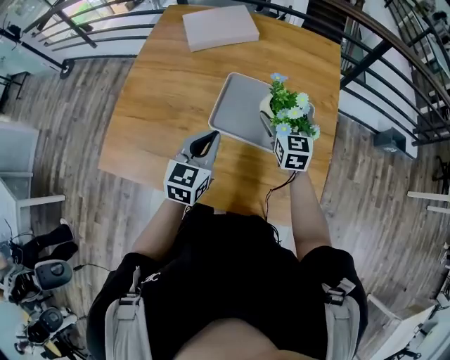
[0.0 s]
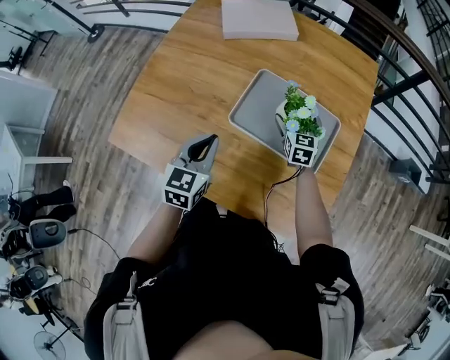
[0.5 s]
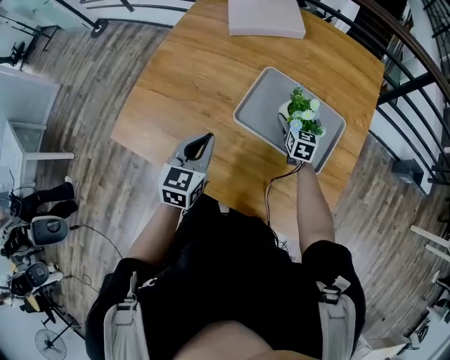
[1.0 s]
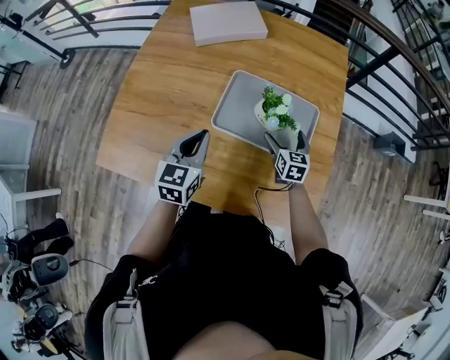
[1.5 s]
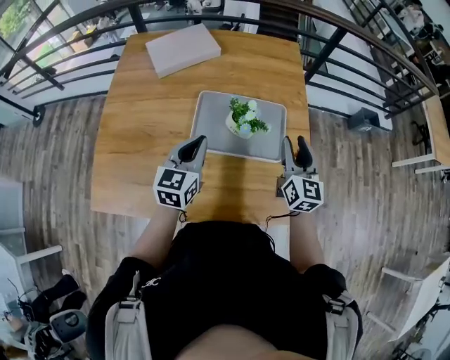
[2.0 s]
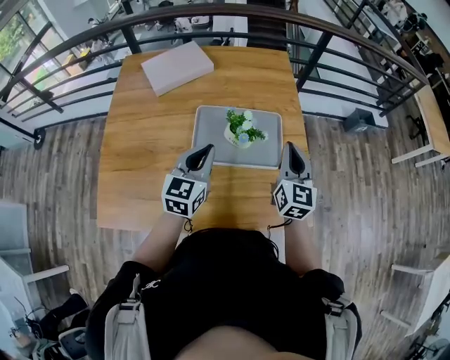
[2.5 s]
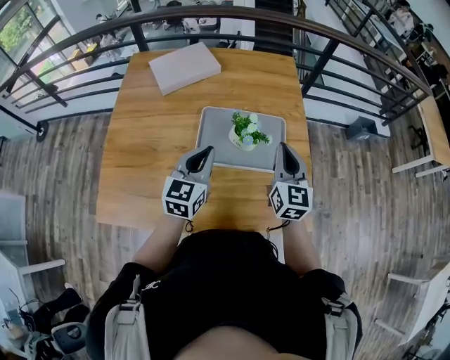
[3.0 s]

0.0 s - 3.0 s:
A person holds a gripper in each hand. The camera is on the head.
0.0 s - 1.5 s: The left gripper travels to the left by approximately 5 cm; the right gripper is displaced downward by roughly 15 cm.
1.5 s - 3.0 s: The right gripper shifts approximately 25 cm upward, changes its angle by about 30 degrees, and closes up. Meanwhile the left gripper is displaced upward and to the right by approximately 10 cm.

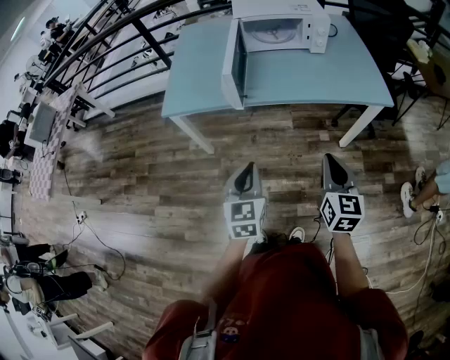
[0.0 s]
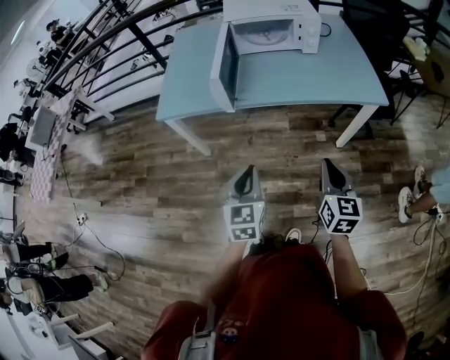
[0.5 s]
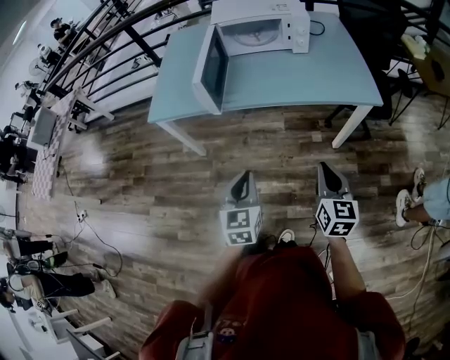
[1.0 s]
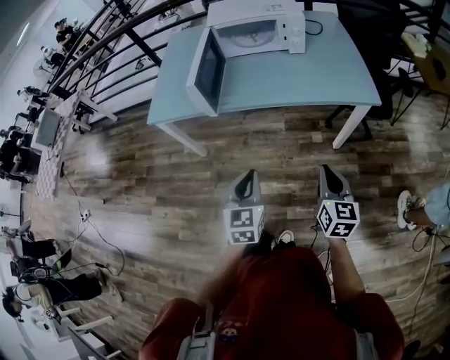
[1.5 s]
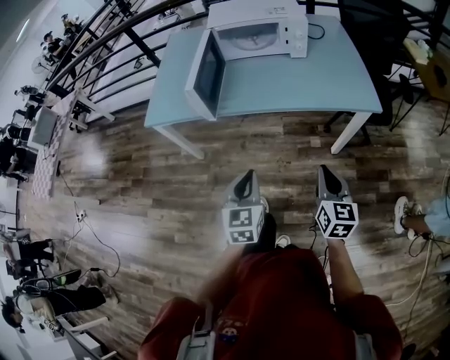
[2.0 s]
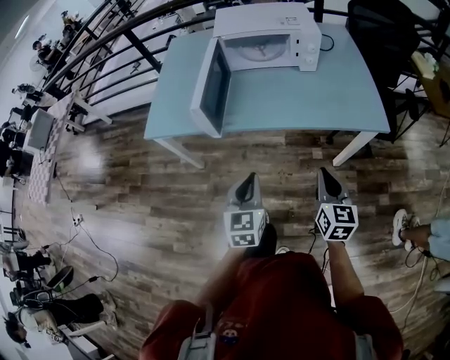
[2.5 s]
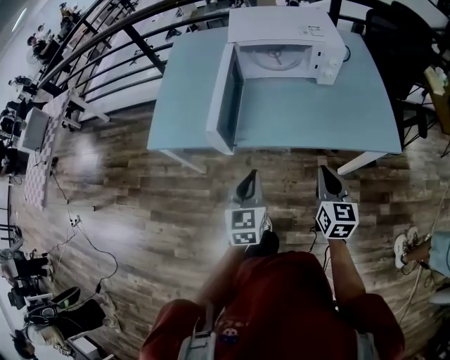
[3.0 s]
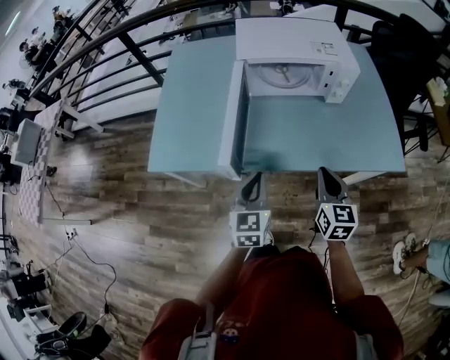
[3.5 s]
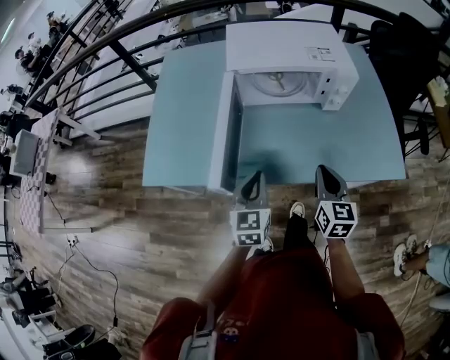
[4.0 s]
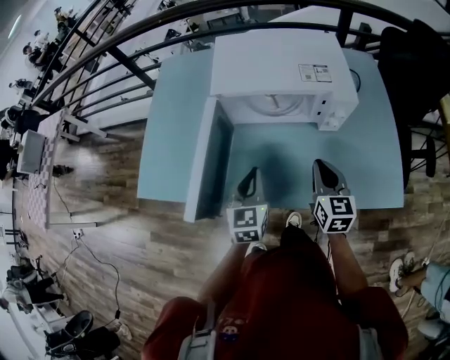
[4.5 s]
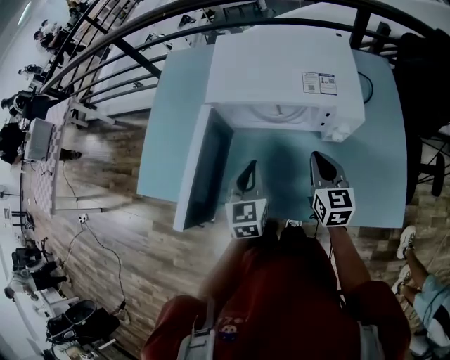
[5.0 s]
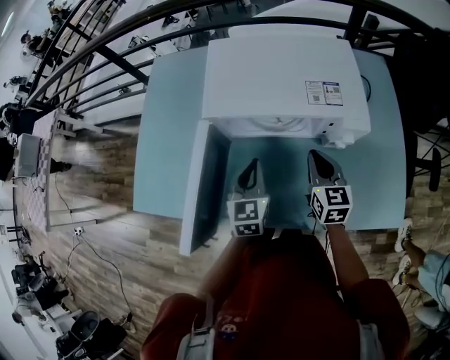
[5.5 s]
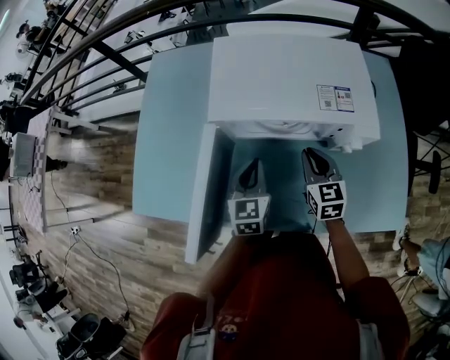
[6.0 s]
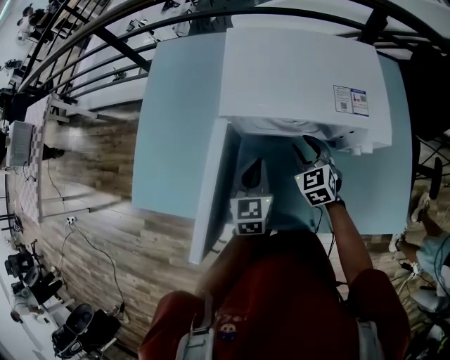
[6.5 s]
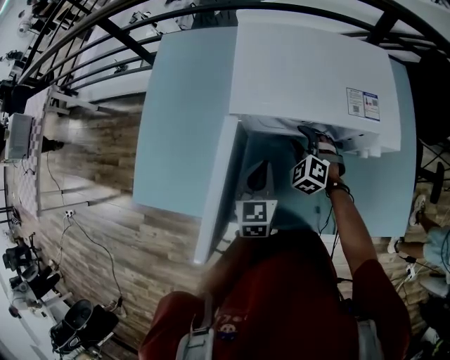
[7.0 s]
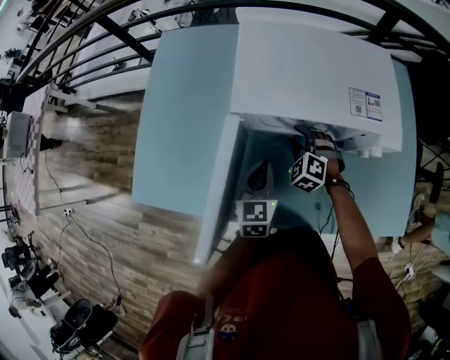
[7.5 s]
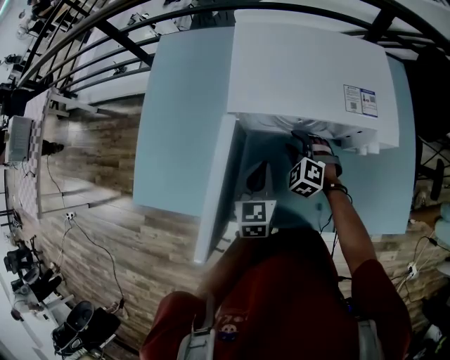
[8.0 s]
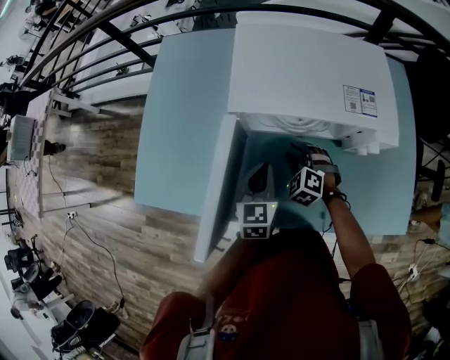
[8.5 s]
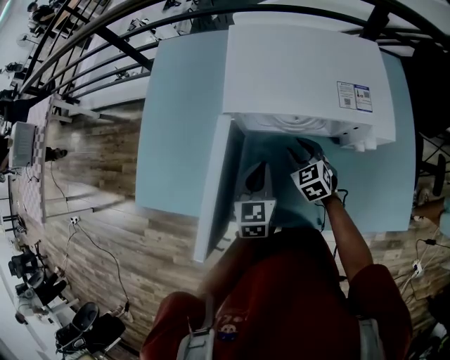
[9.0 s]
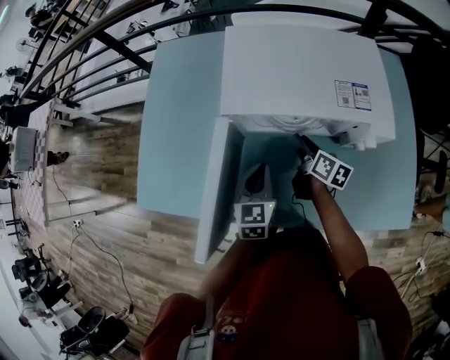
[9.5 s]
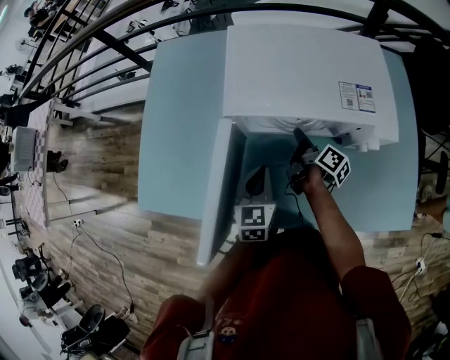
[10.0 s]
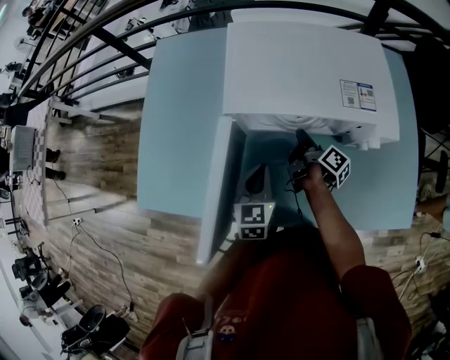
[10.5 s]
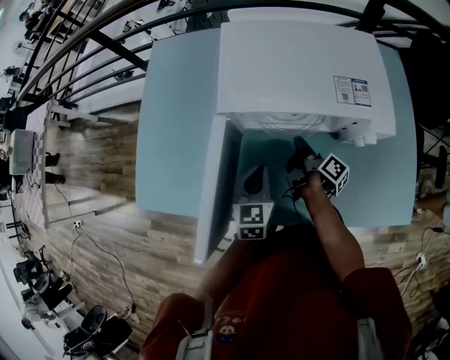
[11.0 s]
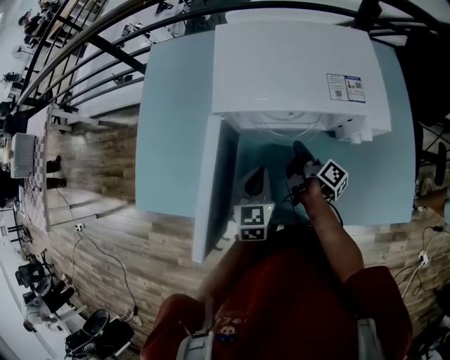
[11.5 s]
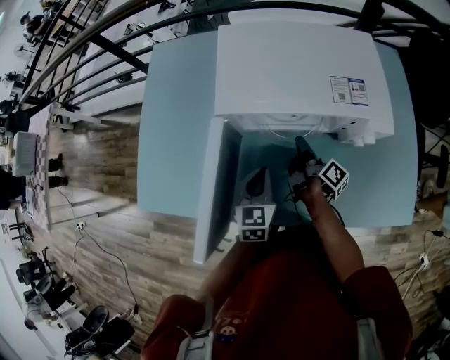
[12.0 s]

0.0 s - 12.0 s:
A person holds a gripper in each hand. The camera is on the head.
0.0 s - 2.0 s: The two grippers go approximately 15 cm to the right.
2.0 s - 4.0 s: Both grippers travel together forward, some 35 cm.
4.0 s - 6.0 s: The grippers both shift forward by roughly 25 cm.
6.0 s - 8.0 s: The right gripper moves downward and to the left, about 15 cm, rotates around the line of its fingers by roughly 50 degrees, counterclockwise from behind, and opens.
8.0 s - 10.0 s: The right gripper is displaced to the right by approximately 5 cm, and rolls clockwise, seen from behind, by approximately 130 degrees.
10.0 s - 12.0 s: The right gripper closes, then opens again.

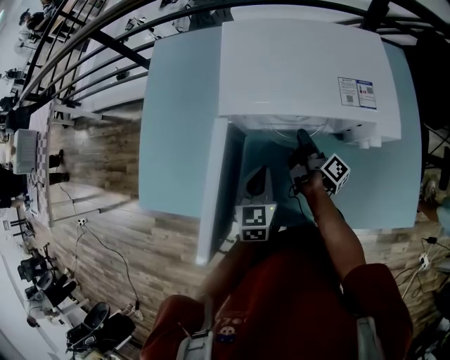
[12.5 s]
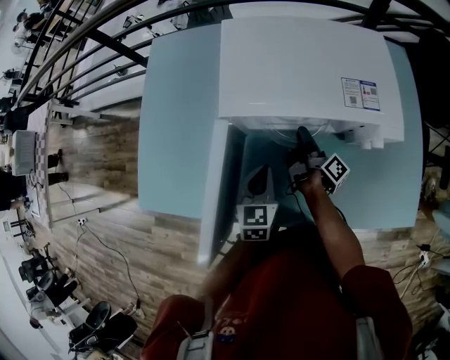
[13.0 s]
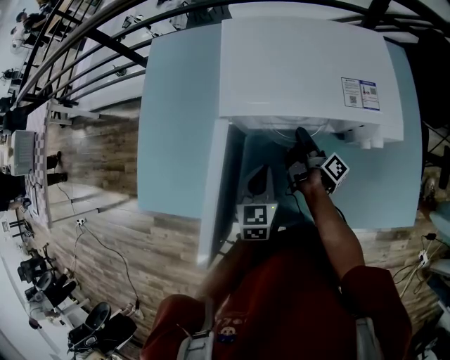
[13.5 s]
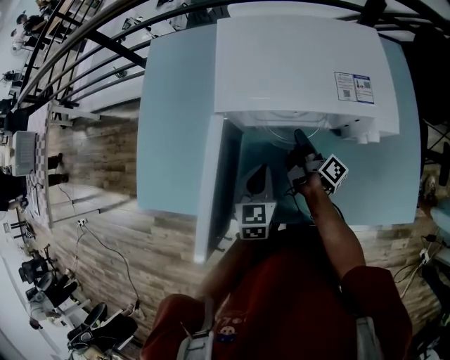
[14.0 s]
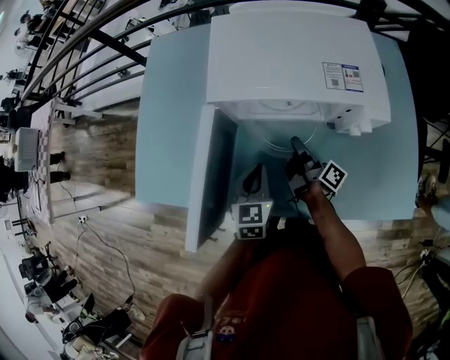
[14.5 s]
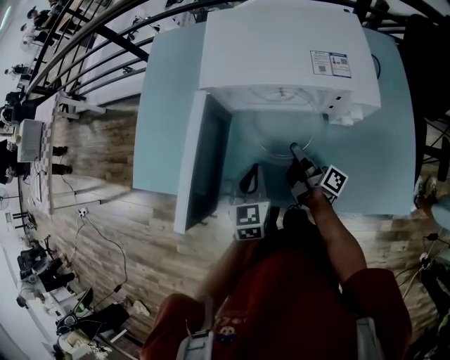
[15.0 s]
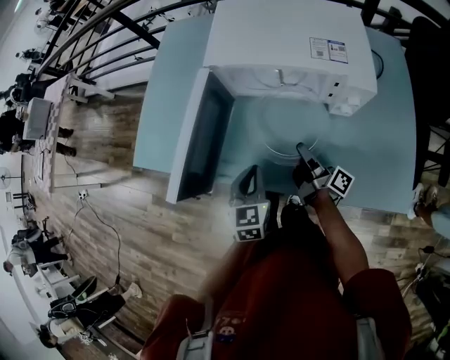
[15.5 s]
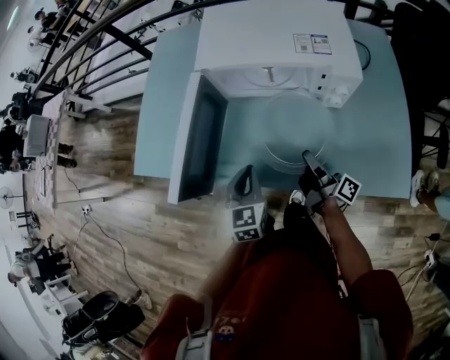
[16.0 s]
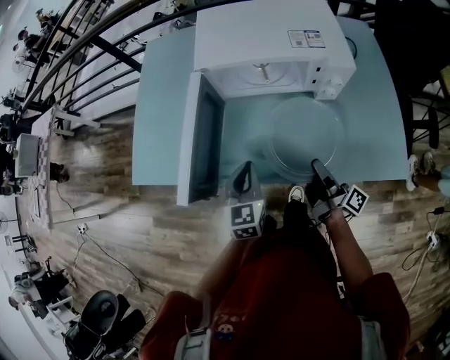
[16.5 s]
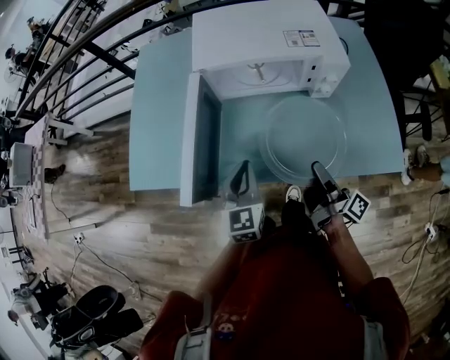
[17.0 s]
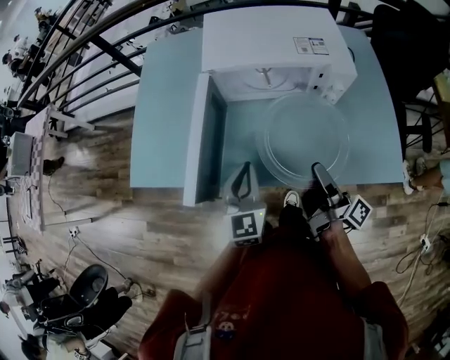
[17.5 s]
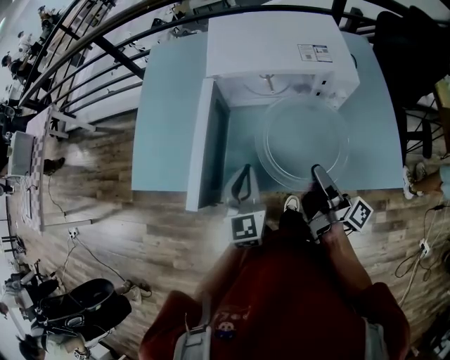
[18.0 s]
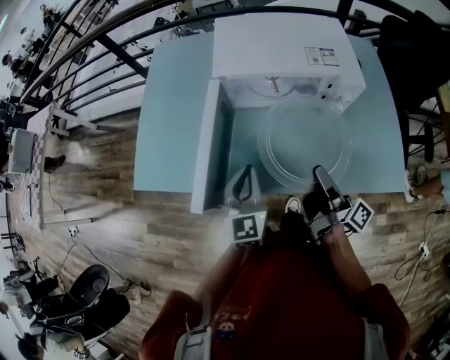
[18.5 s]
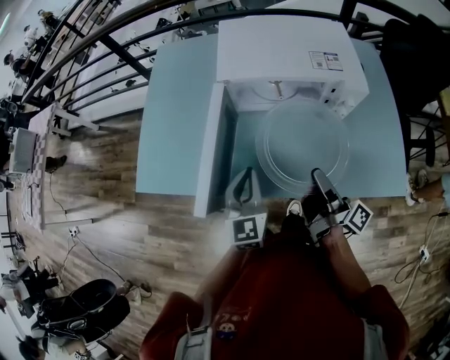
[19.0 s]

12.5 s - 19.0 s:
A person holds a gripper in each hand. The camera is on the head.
12.5 s - 14.5 s: The right gripper heads backward, covering about 5 cm, and closes up.
14.5 s - 17.0 s: The right gripper shifts roughly 25 cm backward. Meanwhile the left gripper moves backward and upward, roughly 15 cm.
17.0 s - 19.0 s: The right gripper goes about 5 cm upward. The left gripper changes place by approximately 5 cm.

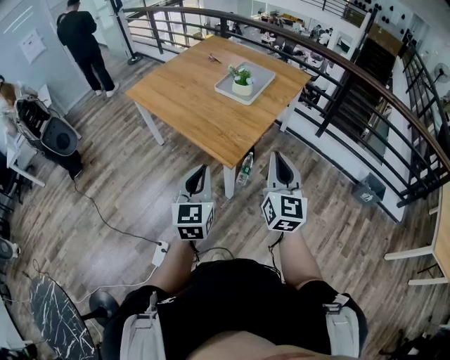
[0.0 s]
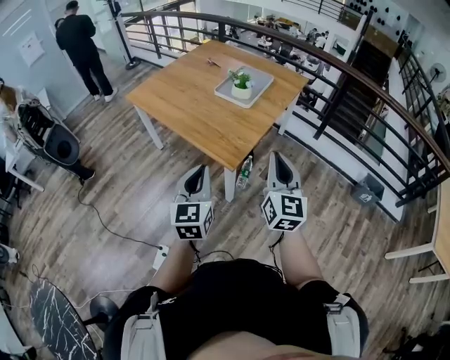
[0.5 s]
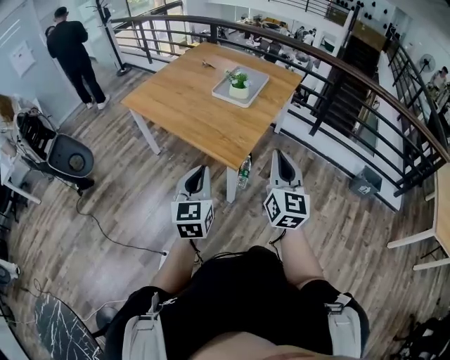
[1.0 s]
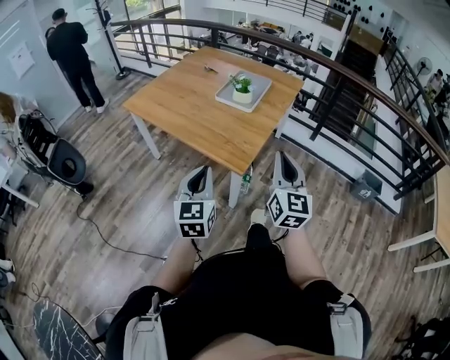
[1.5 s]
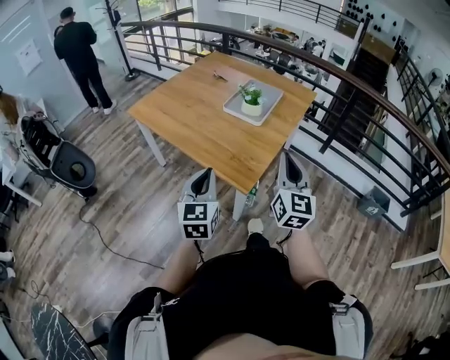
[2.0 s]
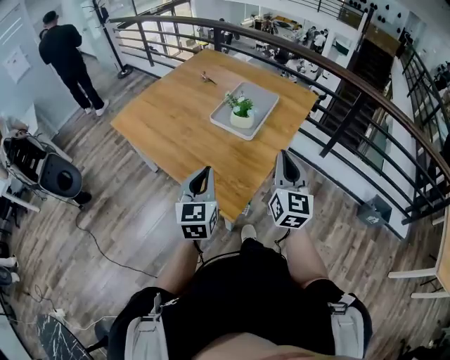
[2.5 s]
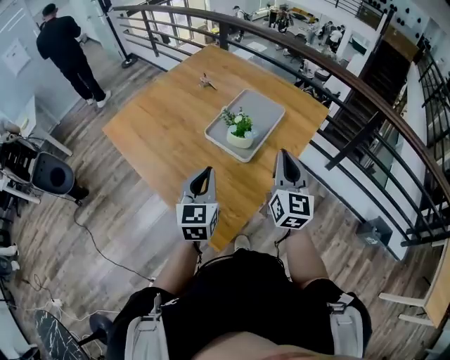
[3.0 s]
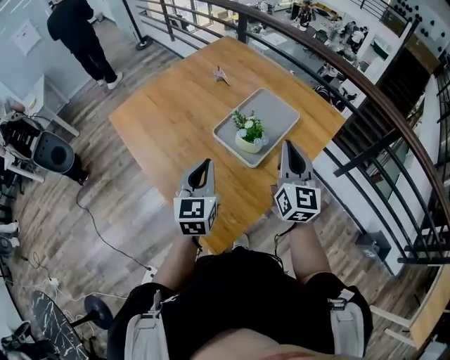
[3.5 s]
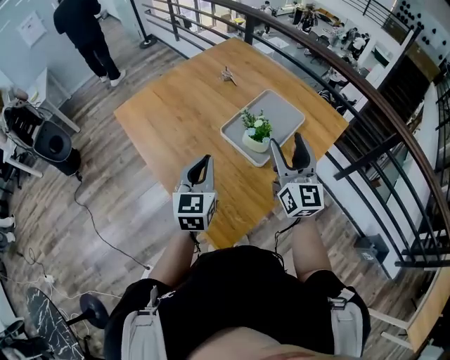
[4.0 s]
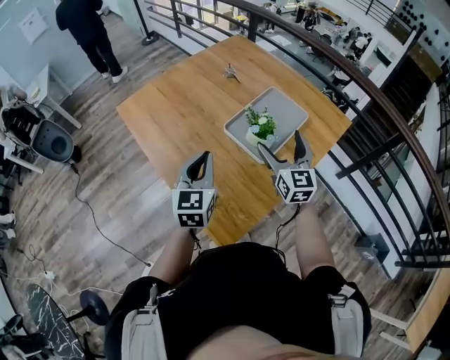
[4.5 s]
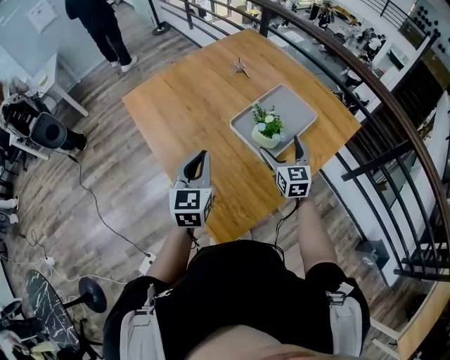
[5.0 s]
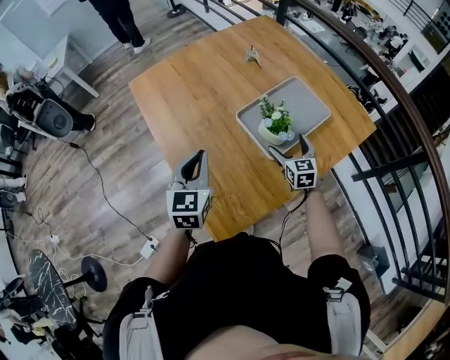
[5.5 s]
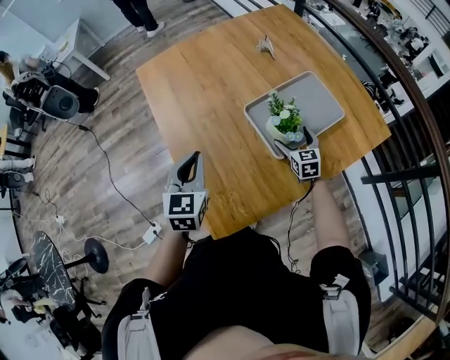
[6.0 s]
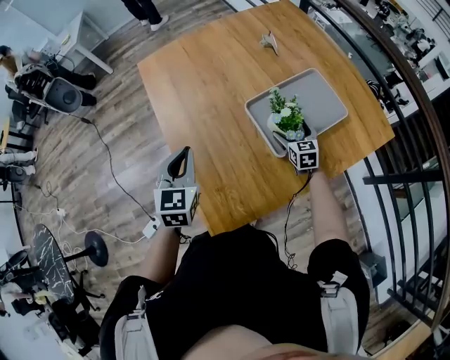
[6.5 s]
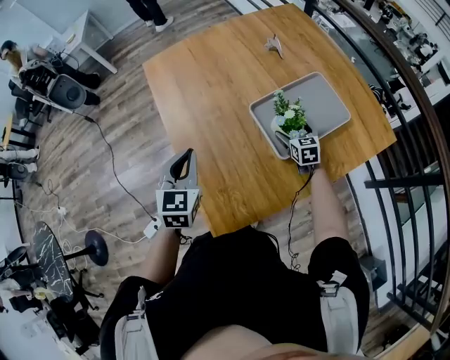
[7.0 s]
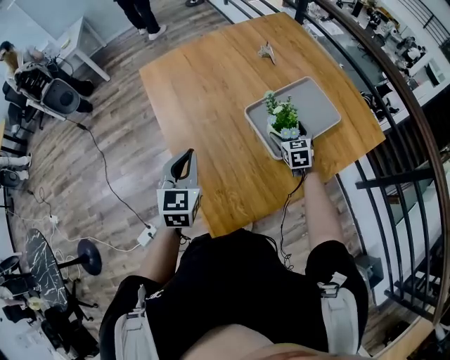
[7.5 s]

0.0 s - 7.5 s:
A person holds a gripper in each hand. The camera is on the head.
0.0 s - 2.0 s: Both grippers move forward and to the left, some 10 cm.
2.0 s - 4.0 s: The two grippers go about 40 cm forward. The right gripper turns by some 20 degrees, and opens its fingers.
4.0 s - 5.5 s: The right gripper moves downward and forward, approximately 30 cm, points its fingers roughly 30 degrees further downward, and opens its fingers.
5.5 s - 7.5 s: The right gripper goes roughly 5 cm forward.
